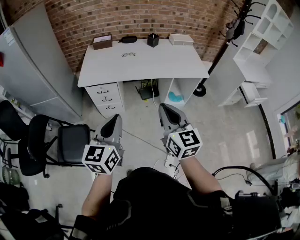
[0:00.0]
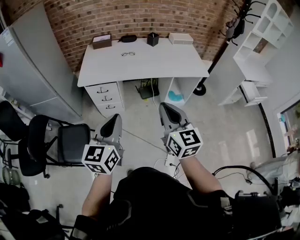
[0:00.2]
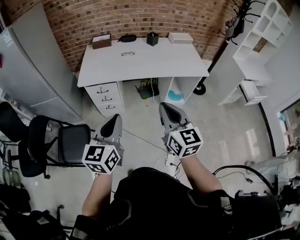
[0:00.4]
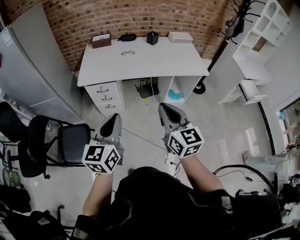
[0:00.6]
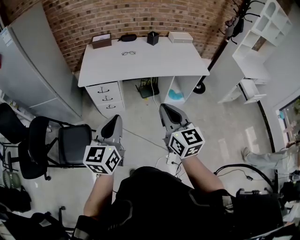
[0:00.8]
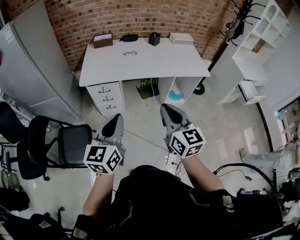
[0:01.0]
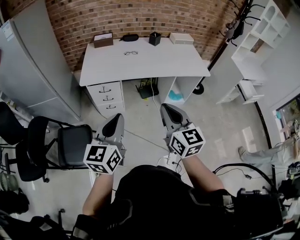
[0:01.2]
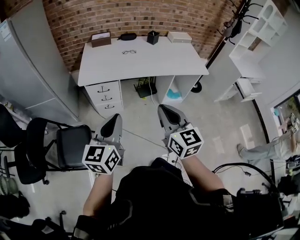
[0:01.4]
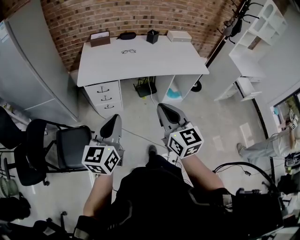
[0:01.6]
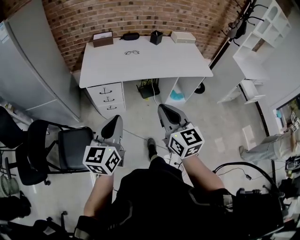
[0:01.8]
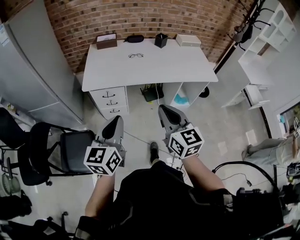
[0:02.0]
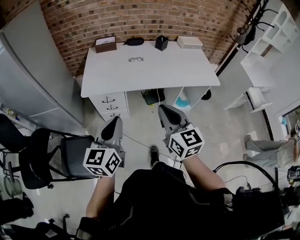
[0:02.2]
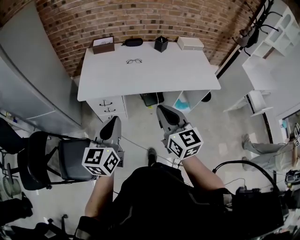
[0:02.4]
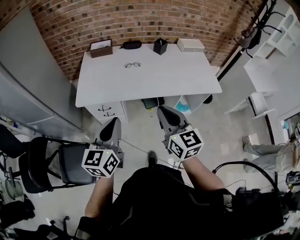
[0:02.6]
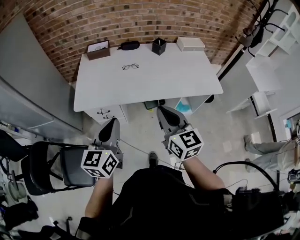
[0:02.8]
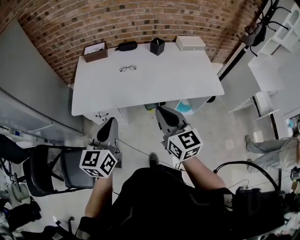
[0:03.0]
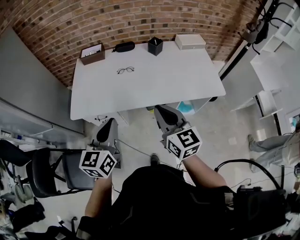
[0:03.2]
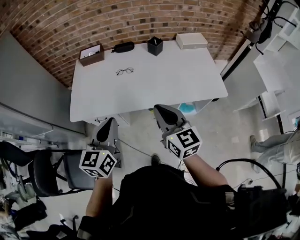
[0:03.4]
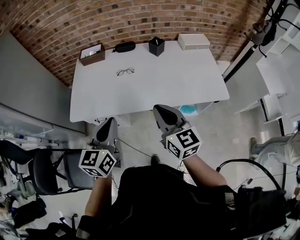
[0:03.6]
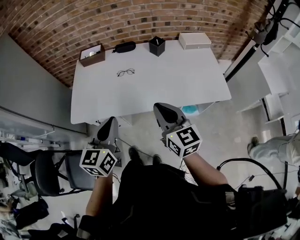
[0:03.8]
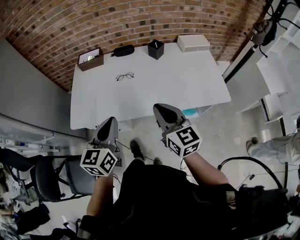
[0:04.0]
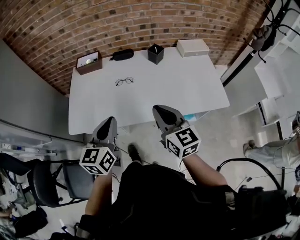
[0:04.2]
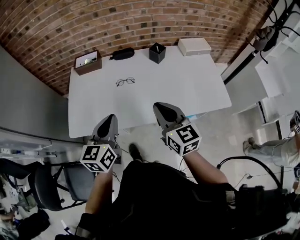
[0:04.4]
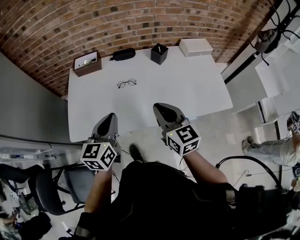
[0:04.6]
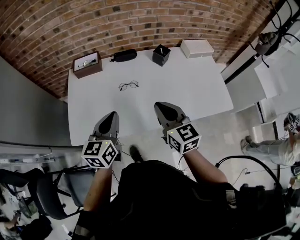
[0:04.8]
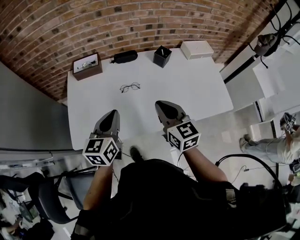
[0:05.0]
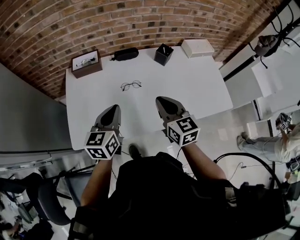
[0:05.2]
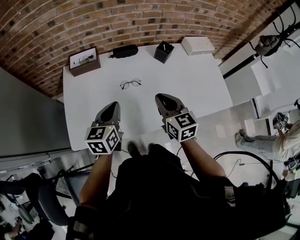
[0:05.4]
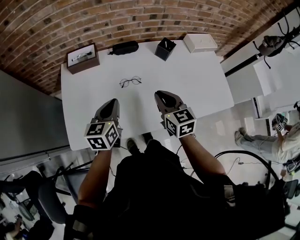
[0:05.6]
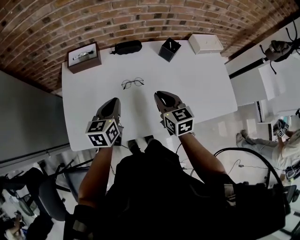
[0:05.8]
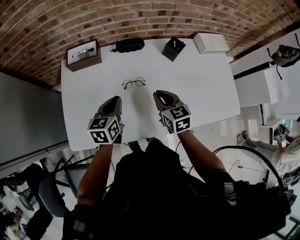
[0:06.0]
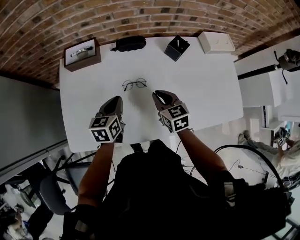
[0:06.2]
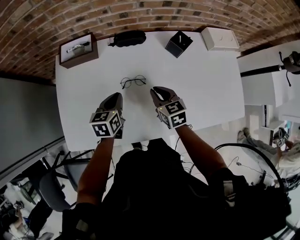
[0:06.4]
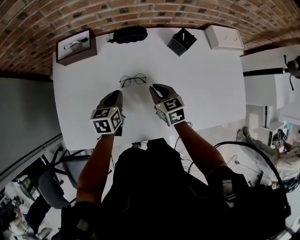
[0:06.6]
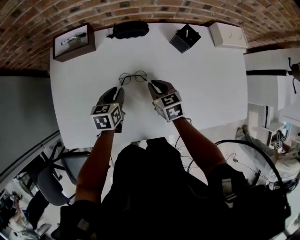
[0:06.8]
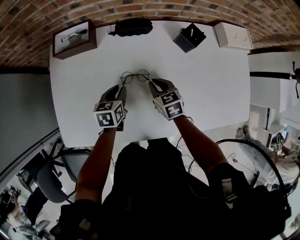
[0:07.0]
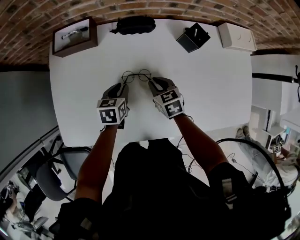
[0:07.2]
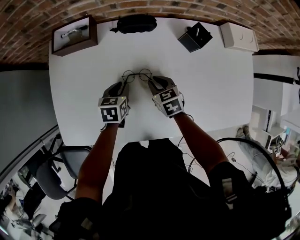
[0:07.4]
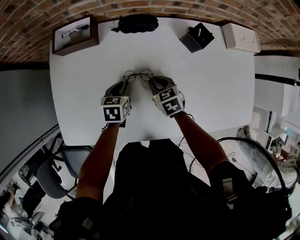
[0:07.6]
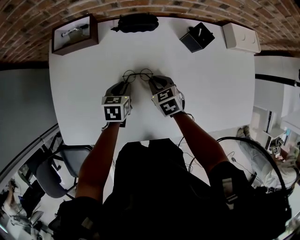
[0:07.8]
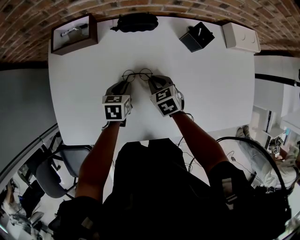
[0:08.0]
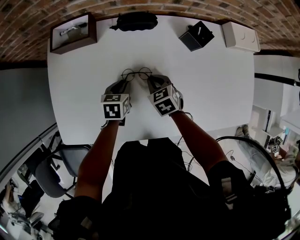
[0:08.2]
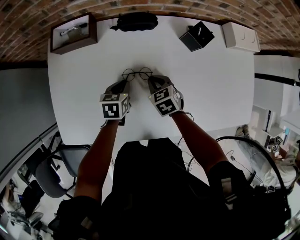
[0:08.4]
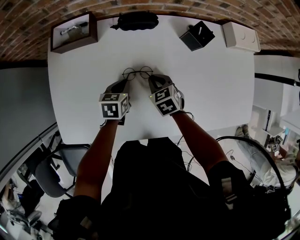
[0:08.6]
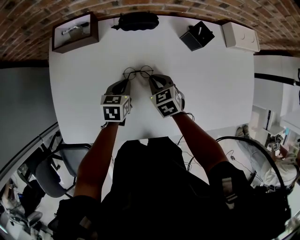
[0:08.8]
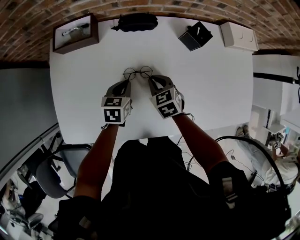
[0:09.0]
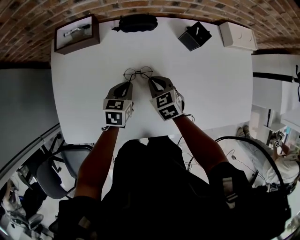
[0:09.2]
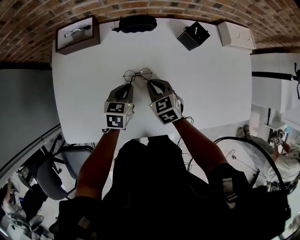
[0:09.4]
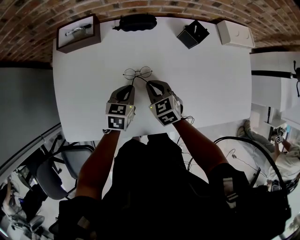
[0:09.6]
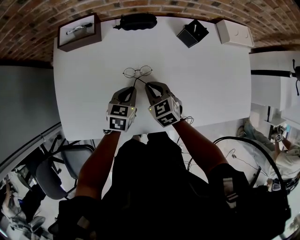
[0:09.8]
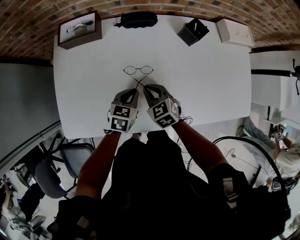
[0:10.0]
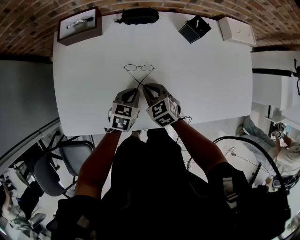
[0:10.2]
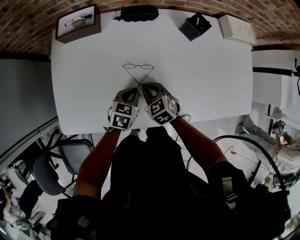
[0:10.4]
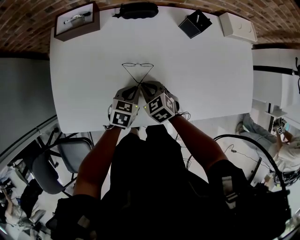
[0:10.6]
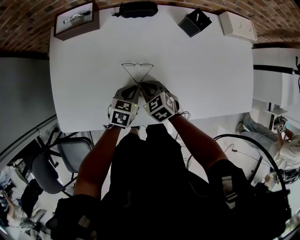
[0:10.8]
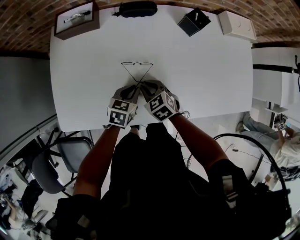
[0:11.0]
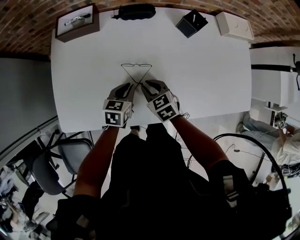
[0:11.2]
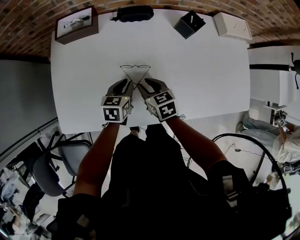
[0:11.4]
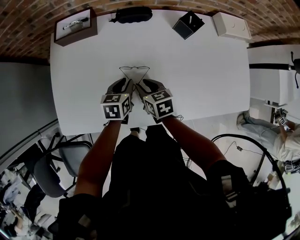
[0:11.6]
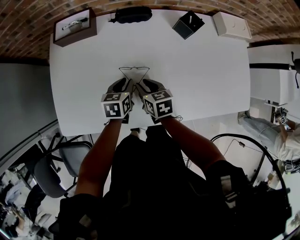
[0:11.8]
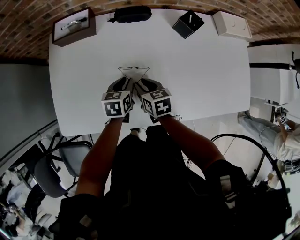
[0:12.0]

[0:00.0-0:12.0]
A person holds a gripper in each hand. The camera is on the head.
0.0 to 1.6 s: Both grippers move to the left, about 10 cm.
1.6 to 3.0 s: Both grippers travel together forward, some 25 cm.
3.0 to 4.4 s: Both grippers move forward, approximately 20 cm.
4.4 to 6.0 s: Both grippers travel together forward and downward, roughly 25 cm. The right gripper swivels some 20 degrees.
6.0 to 7.6 s: Both grippers move downward and forward, roughly 20 cm. The left gripper turns by some 20 degrees. Meanwhile the right gripper turns by roughly 20 degrees.
7.6 to 9.0 s: The grippers stay close to where they were, moving slightly.
9.0 to 10.4 s: The grippers both shift backward by roughly 10 cm.
10.4 to 12.0 s: The right gripper turns by approximately 30 degrees. The left gripper moves roughly 5 cm.

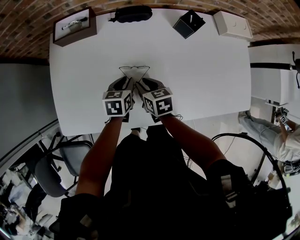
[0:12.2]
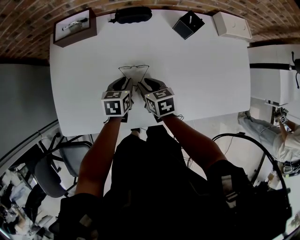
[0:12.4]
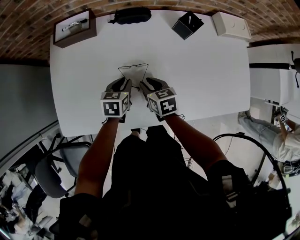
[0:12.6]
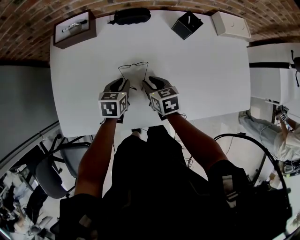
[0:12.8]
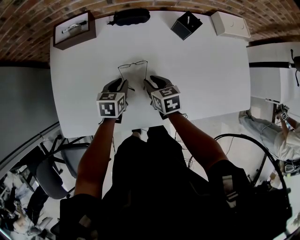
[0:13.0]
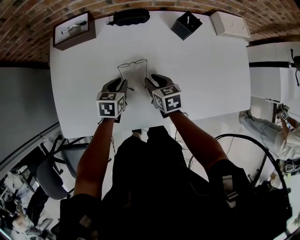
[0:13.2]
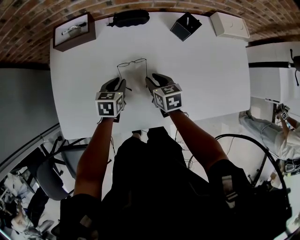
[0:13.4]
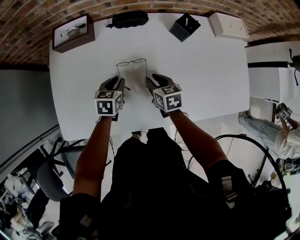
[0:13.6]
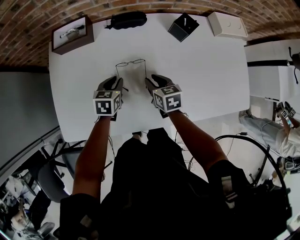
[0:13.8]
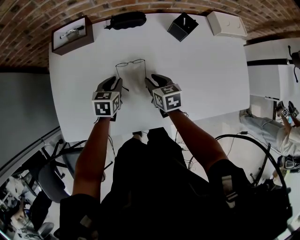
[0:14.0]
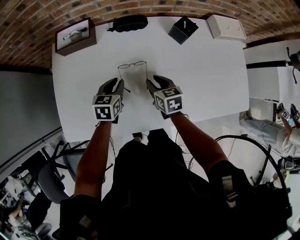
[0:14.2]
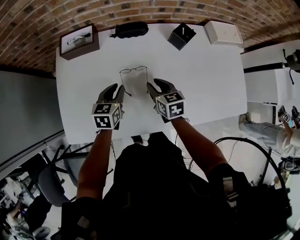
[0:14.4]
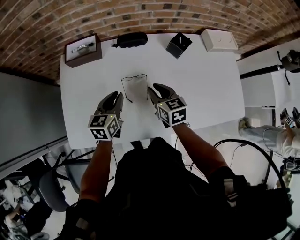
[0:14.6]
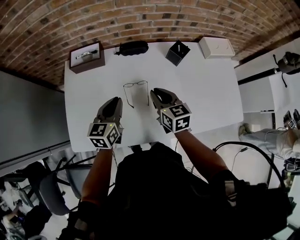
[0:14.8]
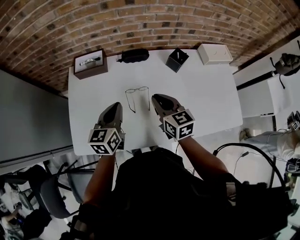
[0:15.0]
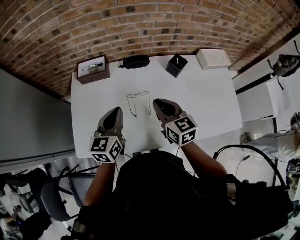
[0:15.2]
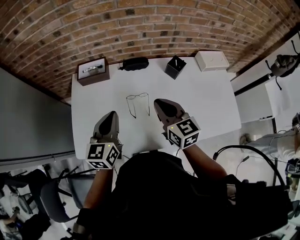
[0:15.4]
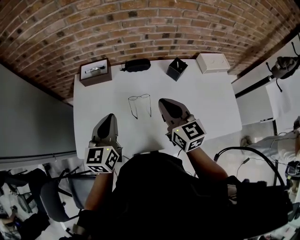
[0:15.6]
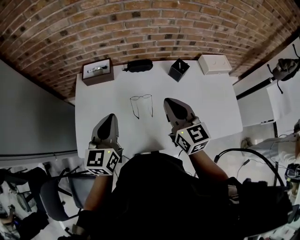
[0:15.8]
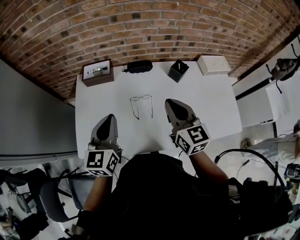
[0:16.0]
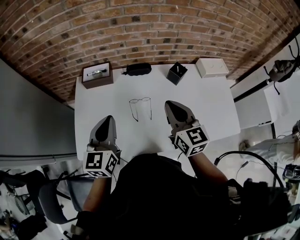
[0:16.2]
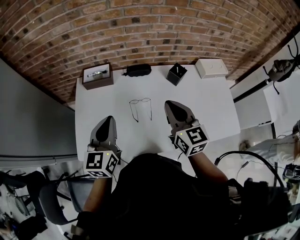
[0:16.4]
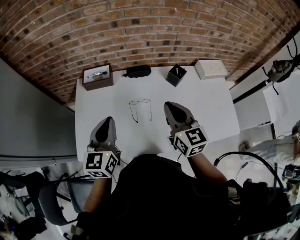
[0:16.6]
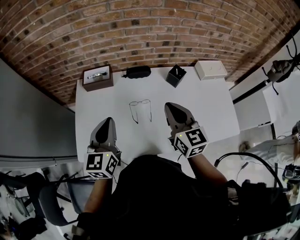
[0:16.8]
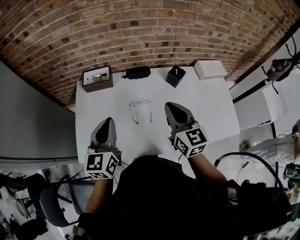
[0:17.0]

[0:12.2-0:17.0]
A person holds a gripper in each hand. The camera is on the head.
12.2 to 13.8 s: The right gripper goes roughly 5 cm to the right.
13.8 to 15.4 s: The grippers both shift upward by about 25 cm. The right gripper turns by roughly 30 degrees. The left gripper angles its fingers upward, by roughly 30 degrees, and closes its fingers.
15.4 to 17.0 s: The two grippers go some 5 cm upward.

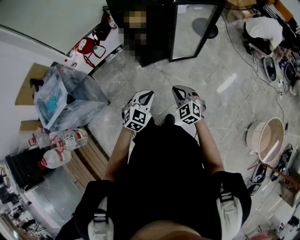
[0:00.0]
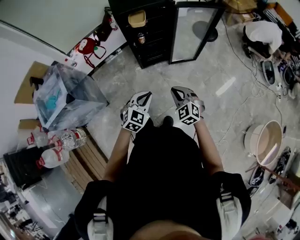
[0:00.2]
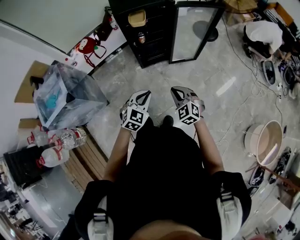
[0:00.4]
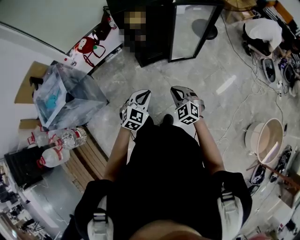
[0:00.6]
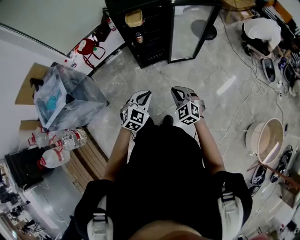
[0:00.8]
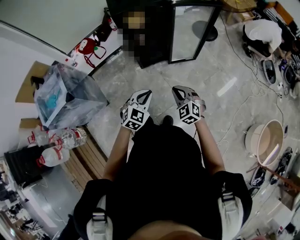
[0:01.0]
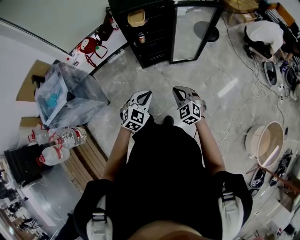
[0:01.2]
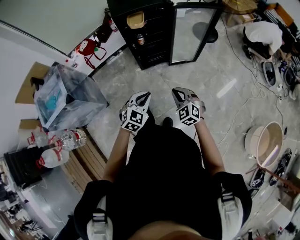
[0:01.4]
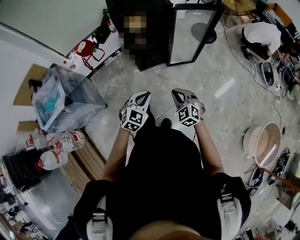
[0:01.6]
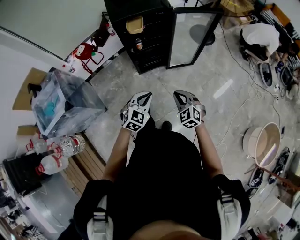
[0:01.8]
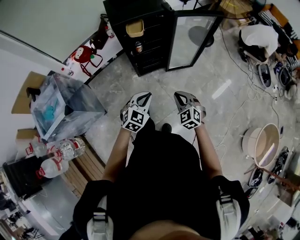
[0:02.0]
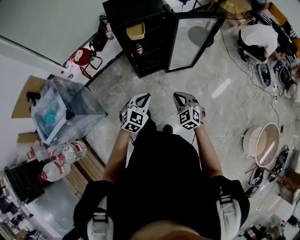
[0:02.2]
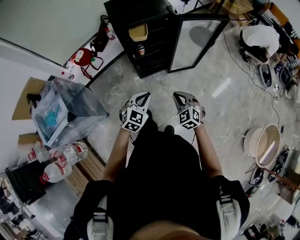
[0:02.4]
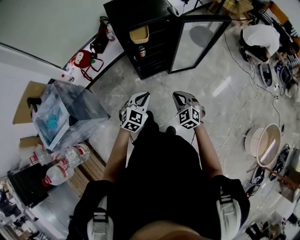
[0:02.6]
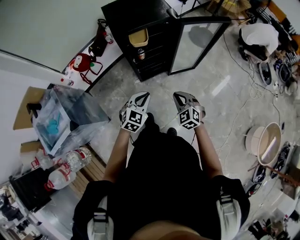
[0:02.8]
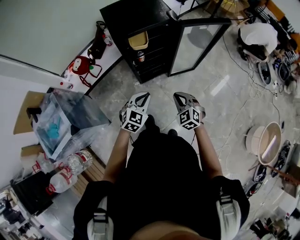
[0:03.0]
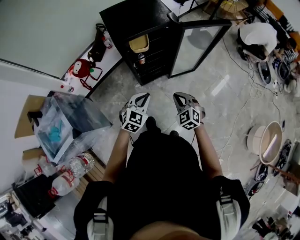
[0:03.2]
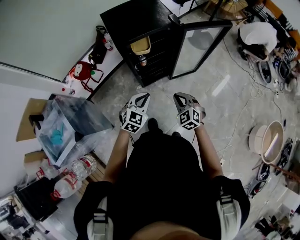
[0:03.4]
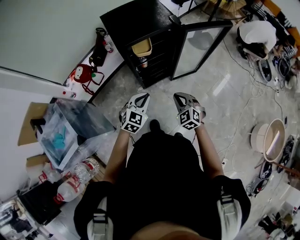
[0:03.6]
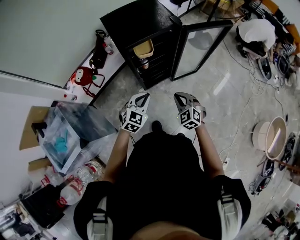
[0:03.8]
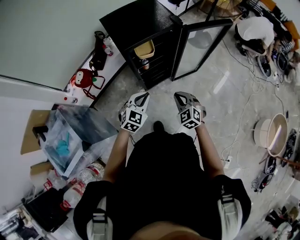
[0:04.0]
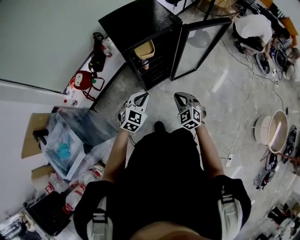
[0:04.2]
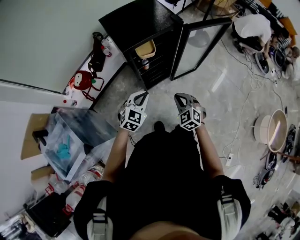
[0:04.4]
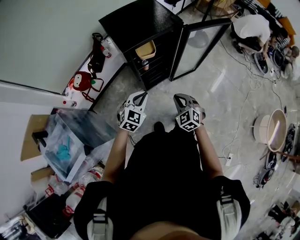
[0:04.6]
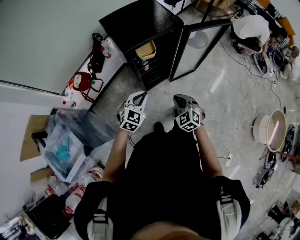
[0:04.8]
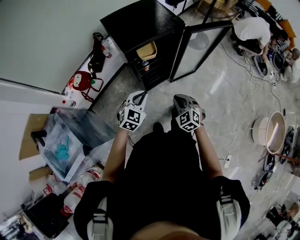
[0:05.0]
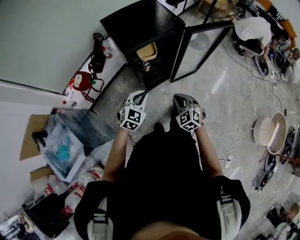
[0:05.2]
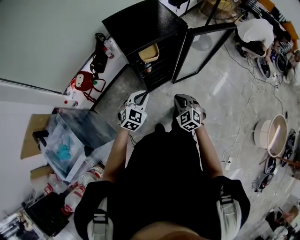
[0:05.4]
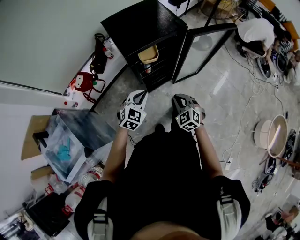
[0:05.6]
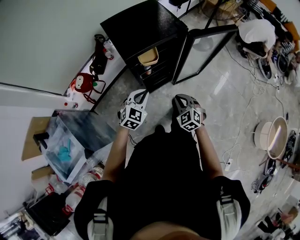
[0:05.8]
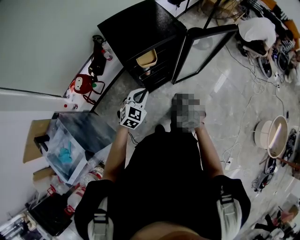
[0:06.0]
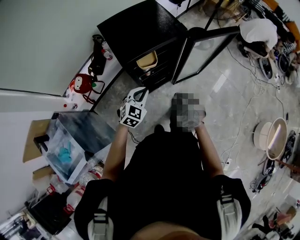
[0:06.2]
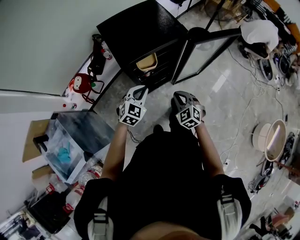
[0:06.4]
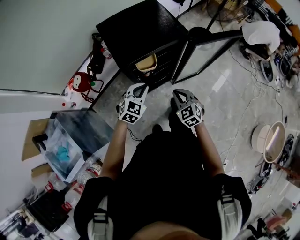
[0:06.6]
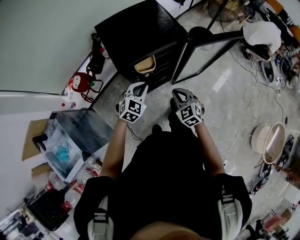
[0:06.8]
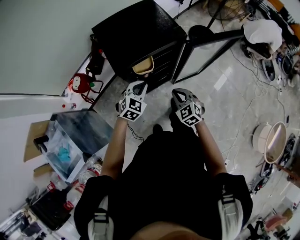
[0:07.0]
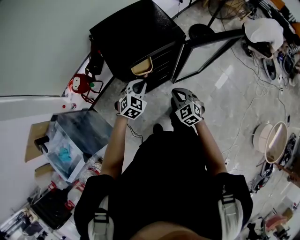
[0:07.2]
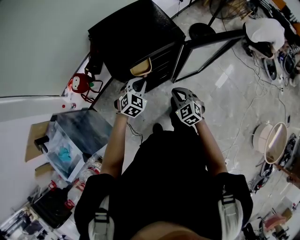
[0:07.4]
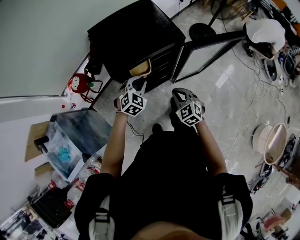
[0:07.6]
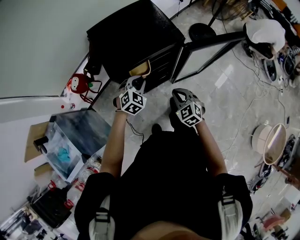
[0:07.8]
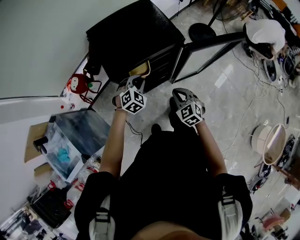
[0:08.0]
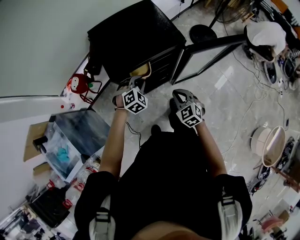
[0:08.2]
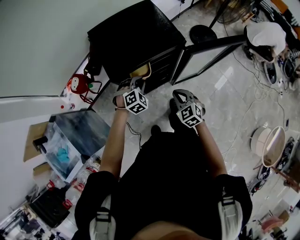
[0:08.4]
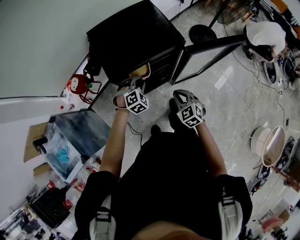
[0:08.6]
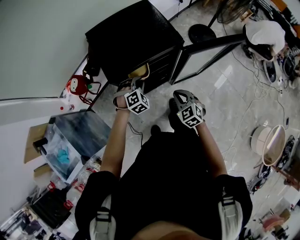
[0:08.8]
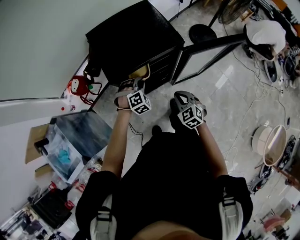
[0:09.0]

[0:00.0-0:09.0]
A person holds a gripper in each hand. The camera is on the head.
0.0 to 1.6 s: The grippers stay close to where they were, moving slightly.
1.6 to 3.0 s: The two grippers go roughly 20 cm forward and to the left.
3.0 to 4.4 s: The left gripper heads to the left and forward, covering approximately 10 cm; the right gripper goes roughly 10 cm to the left.
4.4 to 6.0 s: Both grippers move forward, about 10 cm.
6.0 to 7.6 s: Both grippers move forward, about 10 cm.
7.6 to 9.0 s: The left gripper moves downward, approximately 5 cm, and changes its angle by approximately 30 degrees.
